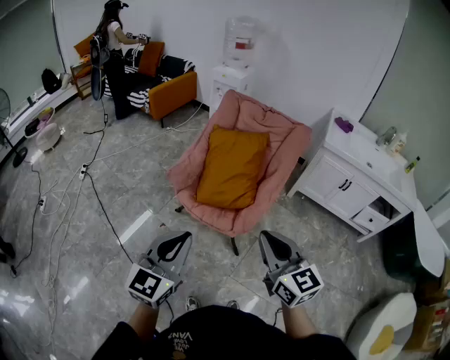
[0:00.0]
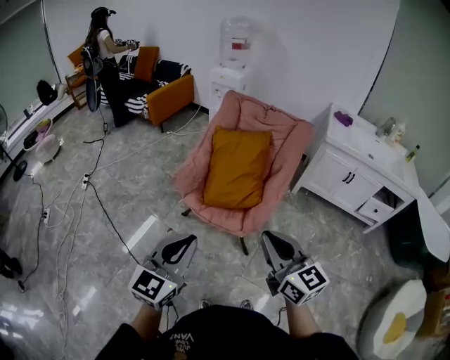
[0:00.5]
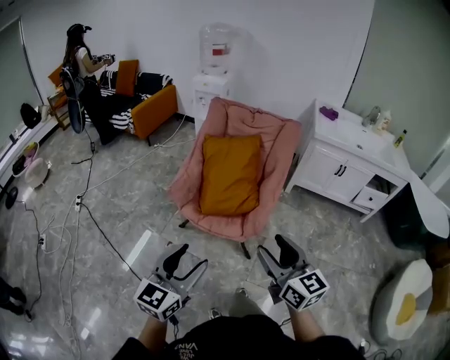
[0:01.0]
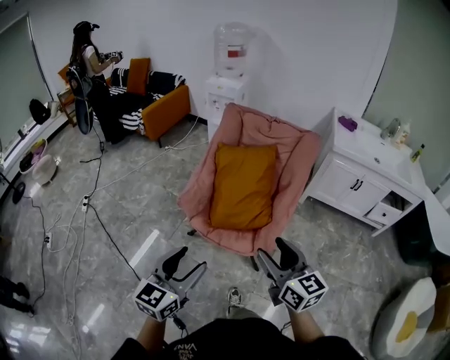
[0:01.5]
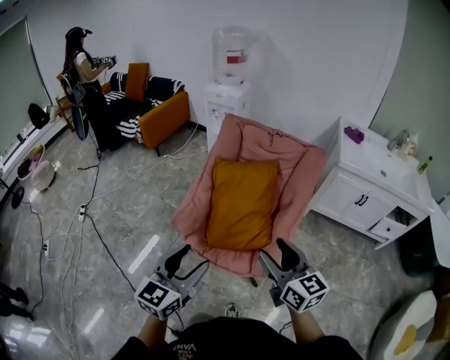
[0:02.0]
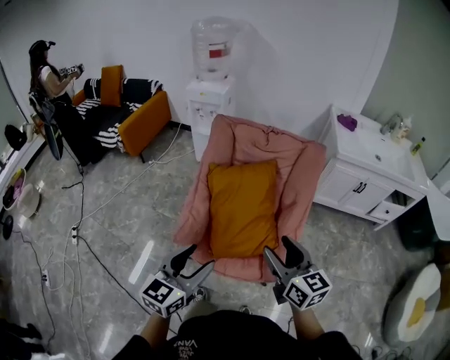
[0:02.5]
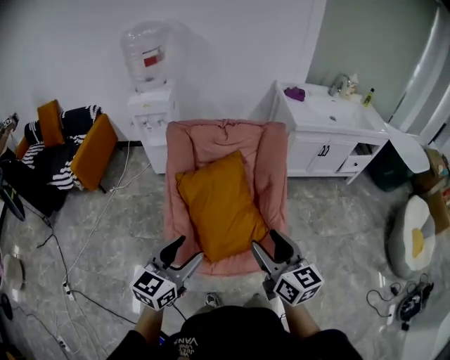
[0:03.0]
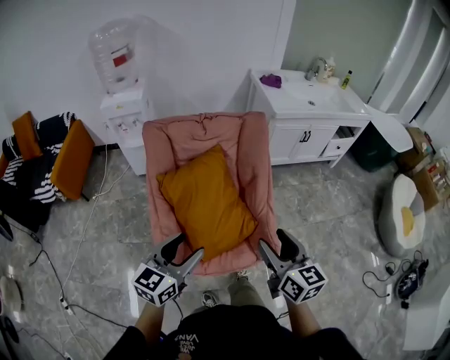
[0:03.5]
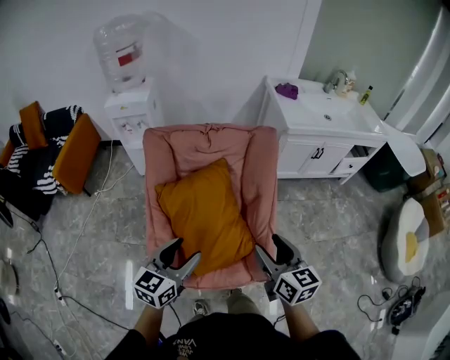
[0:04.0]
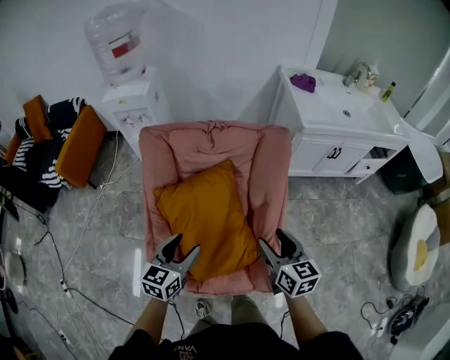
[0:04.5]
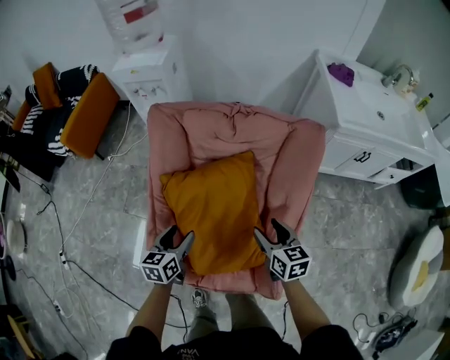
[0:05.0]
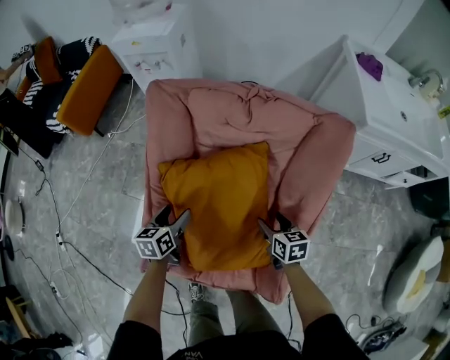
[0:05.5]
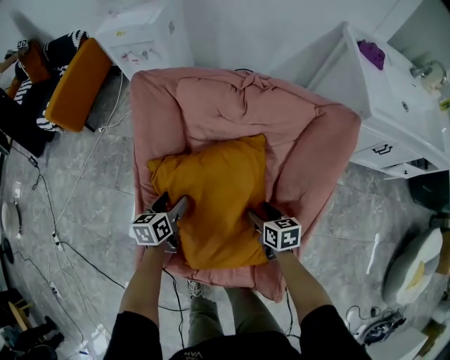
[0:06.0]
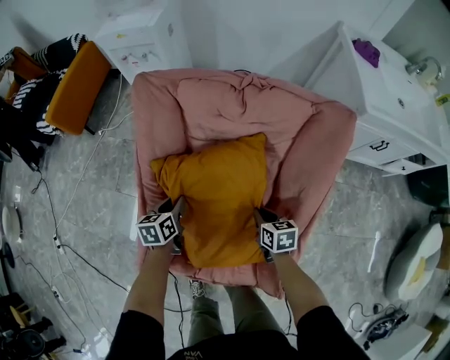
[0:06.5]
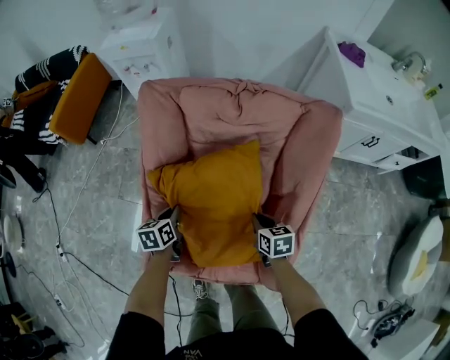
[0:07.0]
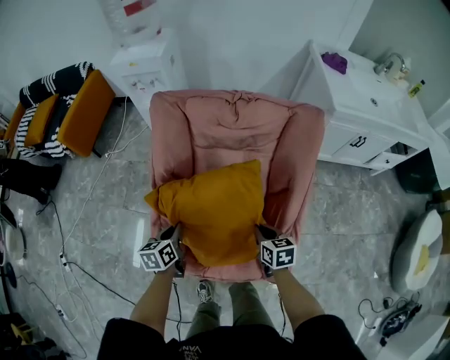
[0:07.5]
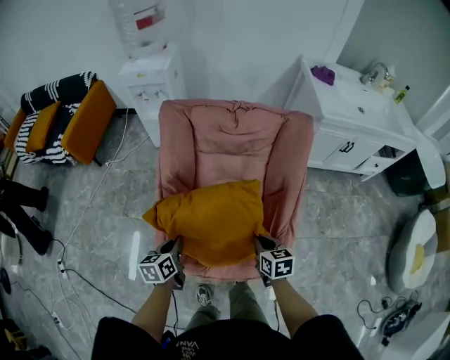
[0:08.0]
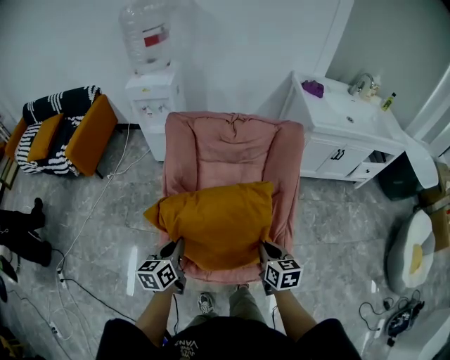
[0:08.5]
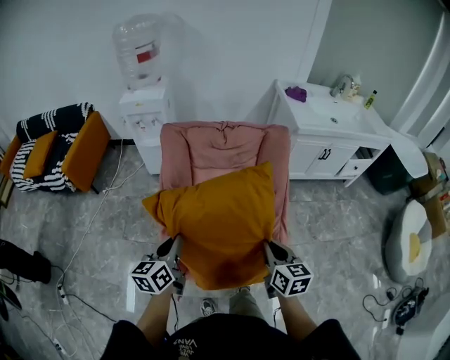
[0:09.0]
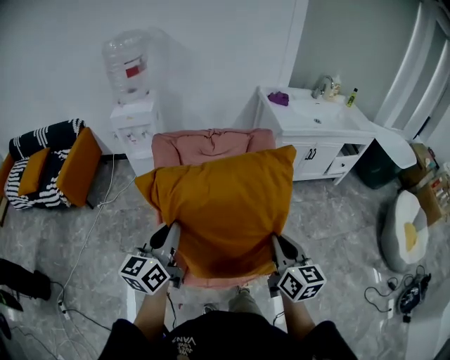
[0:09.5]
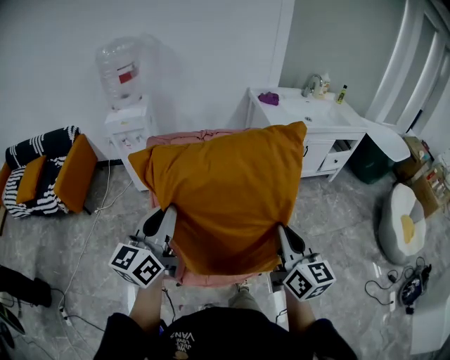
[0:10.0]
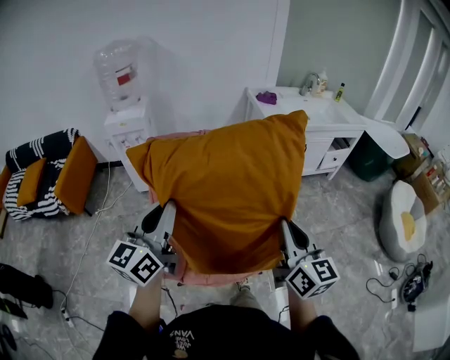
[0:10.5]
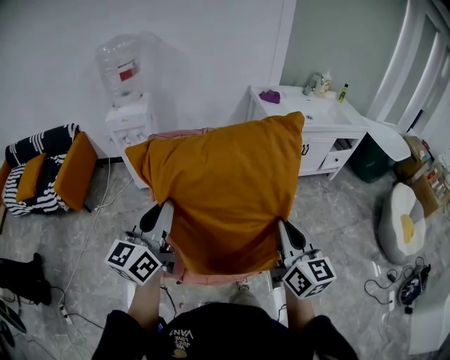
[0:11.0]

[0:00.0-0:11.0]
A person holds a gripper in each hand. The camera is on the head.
0:00.0 to 0:02.0: Both grippers move forward, about 20 cm. The left gripper opens its fingers. The right gripper opens up.
0:02.0 to 0:03.5: The left gripper changes place by about 20 cm, and rotates some 40 degrees. Meanwhile the right gripper rotates some 40 degrees.
0:03.5 to 0:05.5: The two grippers go roughly 35 cm downward. The right gripper angles its fingers downward, by roughly 30 degrees. The left gripper rotates roughly 50 degrees.
0:05.5 to 0:07.5: The two grippers go approximately 10 cm backward. The right gripper closes; the left gripper closes up.
0:07.5 to 0:09.0: The grippers both shift upward and backward by roughly 25 cm. The right gripper turns by approximately 30 degrees; the left gripper swivels approximately 30 degrees.
0:09.0 to 0:11.0: The two grippers go approximately 20 cm upward. The left gripper swivels about 30 degrees. The right gripper turns by roughly 30 degrees.

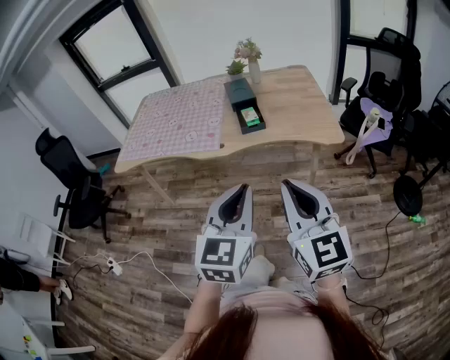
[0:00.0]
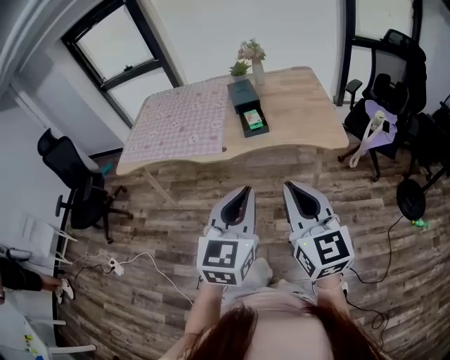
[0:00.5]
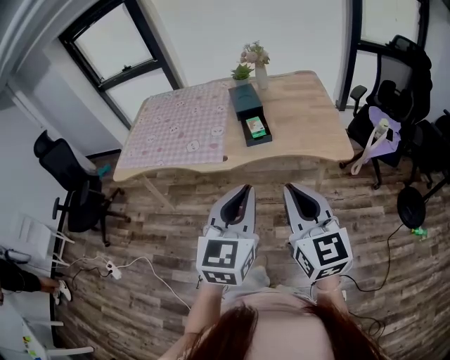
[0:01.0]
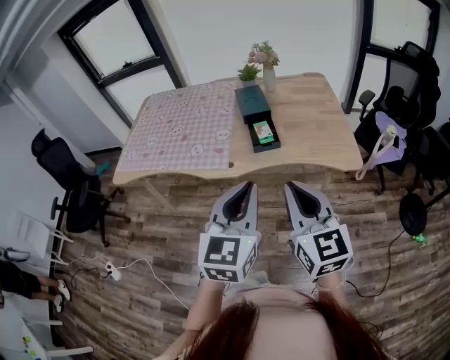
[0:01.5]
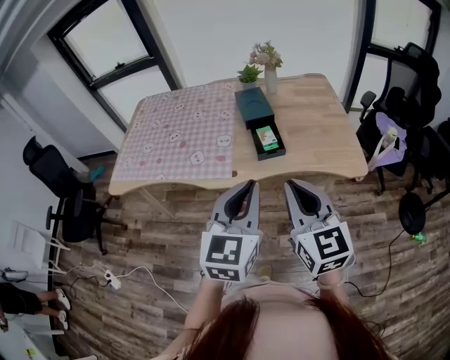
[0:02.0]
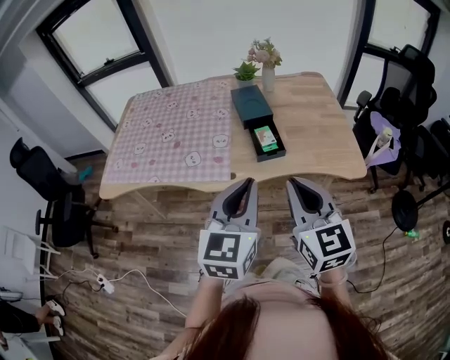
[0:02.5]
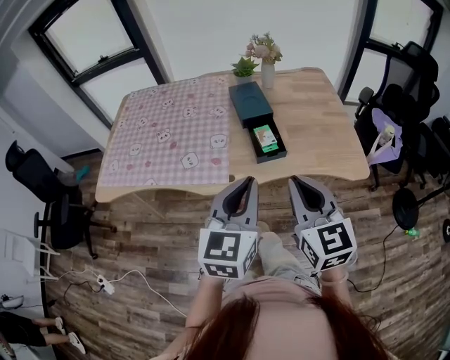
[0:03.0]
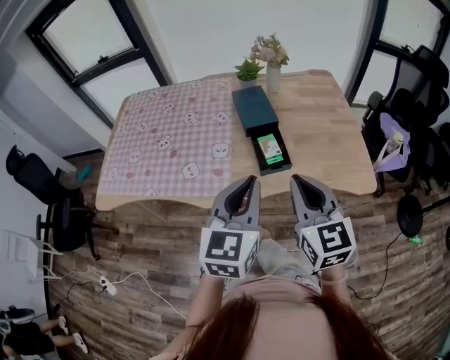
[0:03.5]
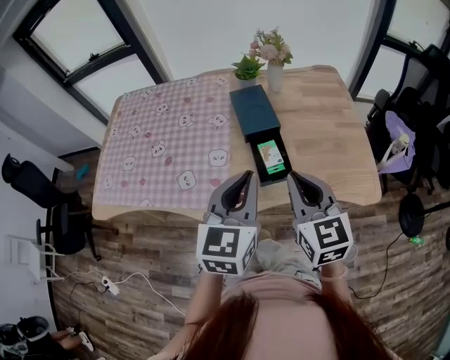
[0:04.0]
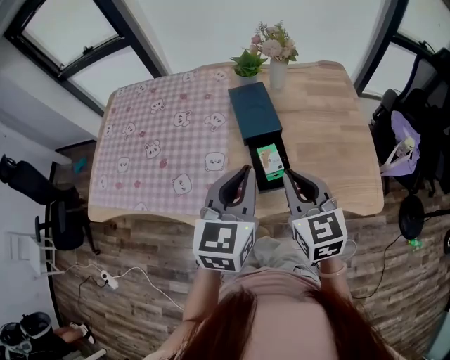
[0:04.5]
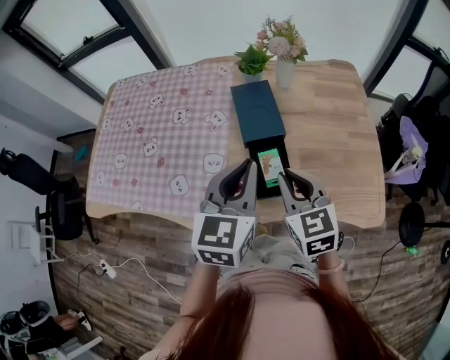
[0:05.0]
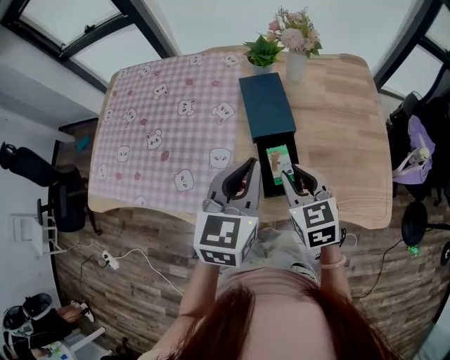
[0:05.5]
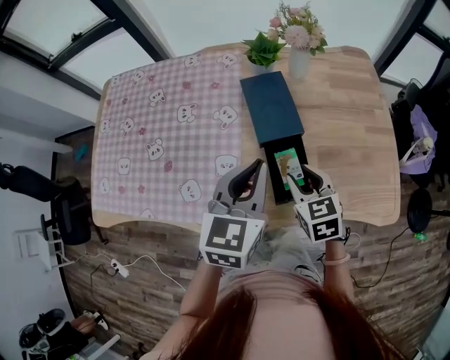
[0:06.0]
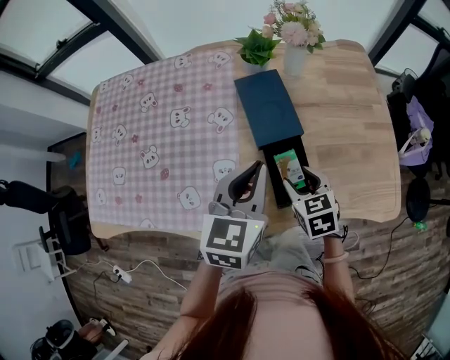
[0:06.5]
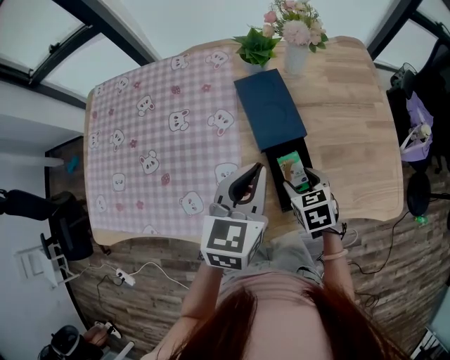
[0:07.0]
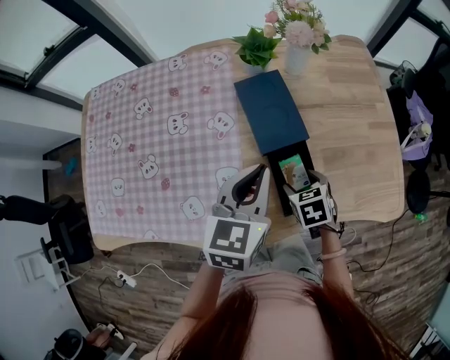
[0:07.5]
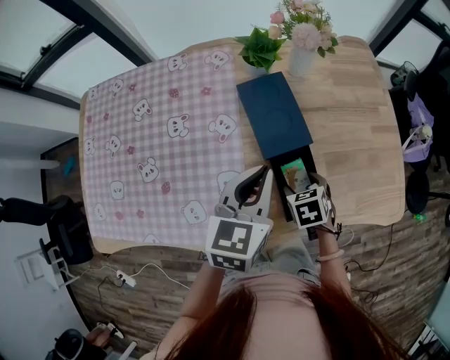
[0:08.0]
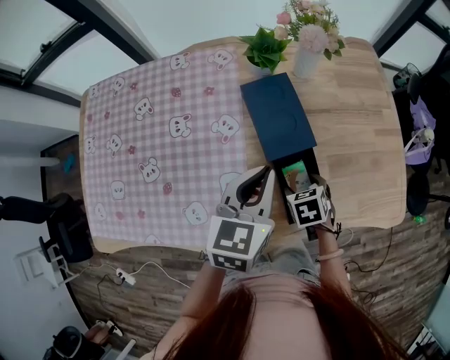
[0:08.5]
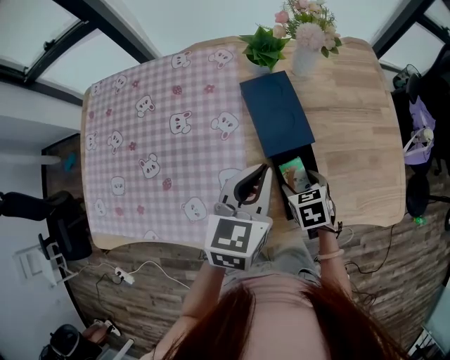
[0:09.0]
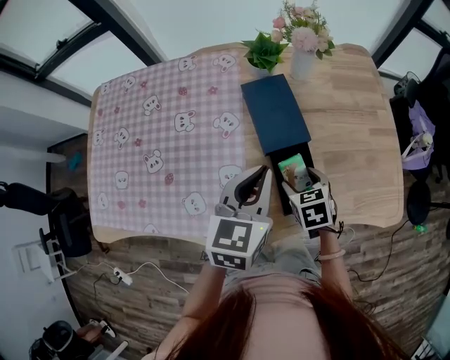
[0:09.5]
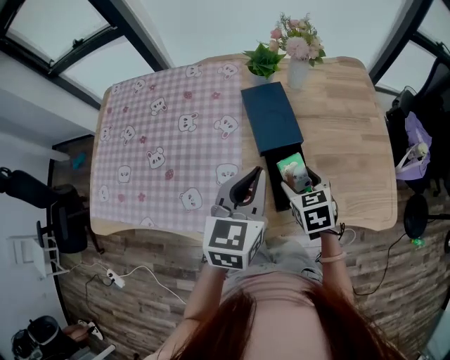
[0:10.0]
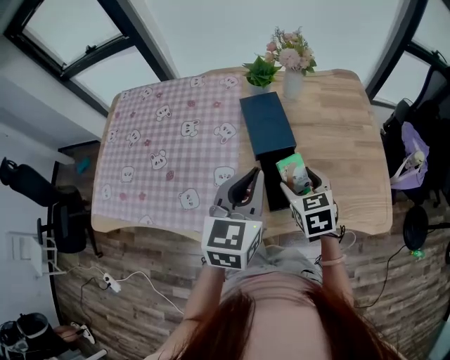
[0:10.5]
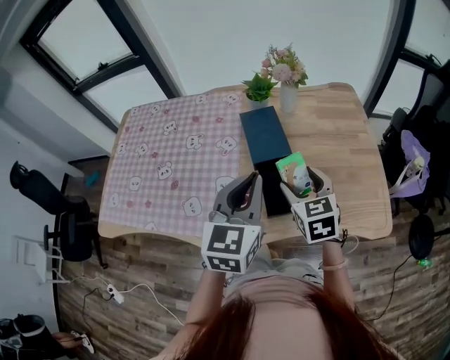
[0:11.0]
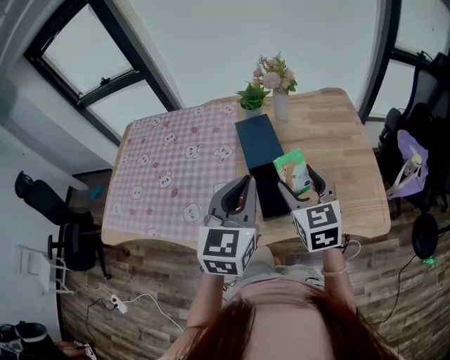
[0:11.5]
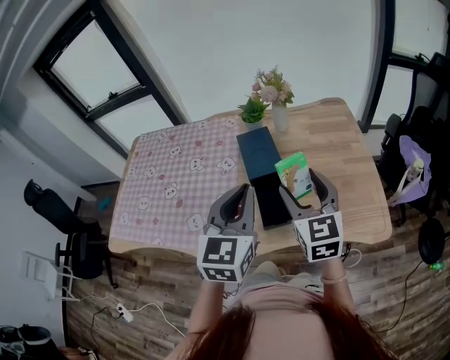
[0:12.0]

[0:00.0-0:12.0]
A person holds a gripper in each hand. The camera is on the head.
0:00.0 to 0:02.0: Both grippers travel together forward, approximately 20 cm.
0:02.0 to 0:04.0: The two grippers go some 25 cm forward.
0:04.0 to 0:06.0: The right gripper is displaced downward and forward by about 25 cm, changes its angle by roughly 30 degrees, and opens its fingers. The left gripper goes roughly 15 cm forward.
0:06.0 to 0:08.0: The left gripper is displaced forward and downward by approximately 10 cm, while the right gripper travels downward by roughly 15 cm, turns by some 30 degrees, and opens its fingers.
0:08.0 to 0:10.0: The left gripper goes roughly 5 cm backward. Meanwhile the right gripper heads upward, covering approximately 10 cm, and changes its angle by roughly 20 degrees.
0:10.0 to 0:12.0: The left gripper heads upward, backward and to the right, covering some 15 cm. Meanwhile the right gripper moves upward, some 20 cm, and tips its fingers upward by roughly 40 degrees.

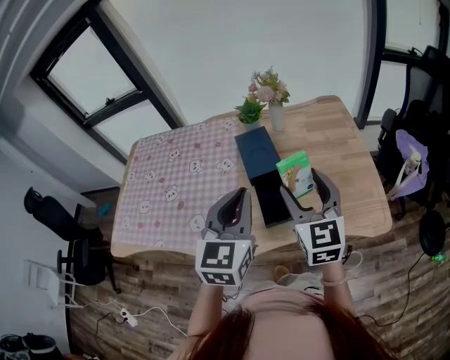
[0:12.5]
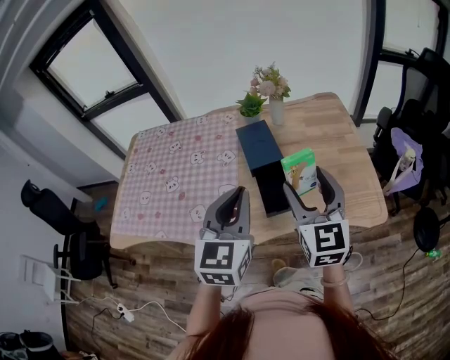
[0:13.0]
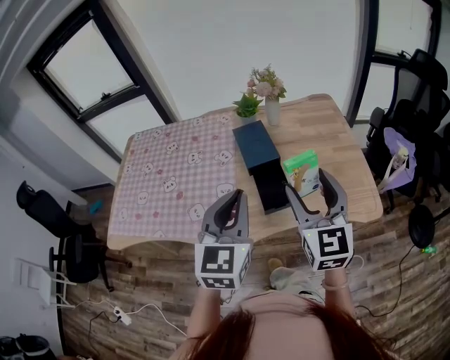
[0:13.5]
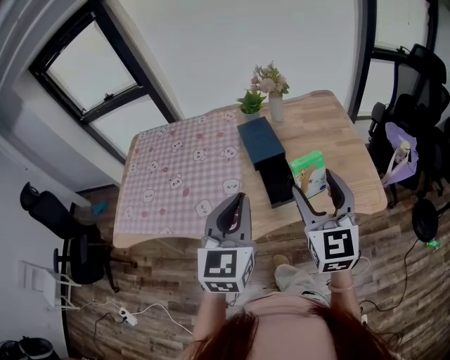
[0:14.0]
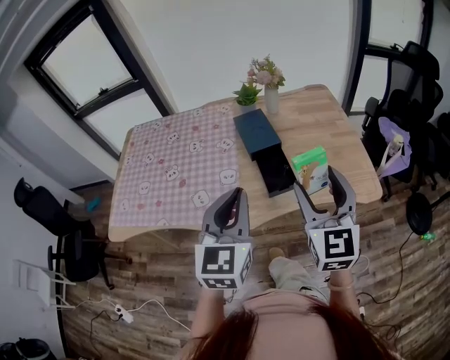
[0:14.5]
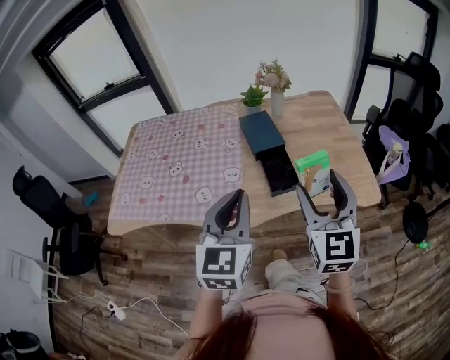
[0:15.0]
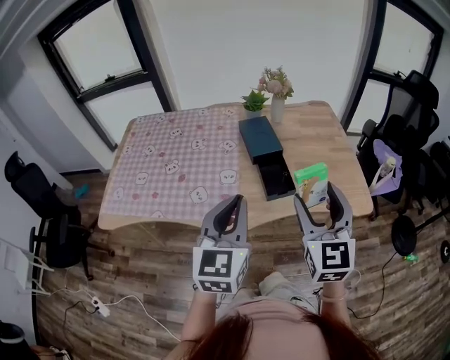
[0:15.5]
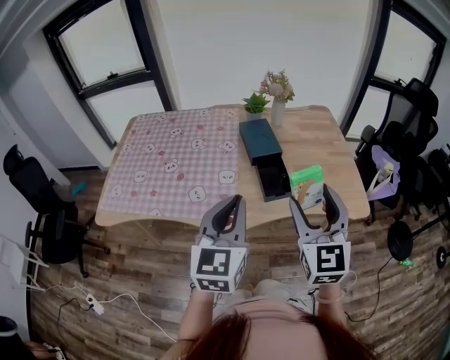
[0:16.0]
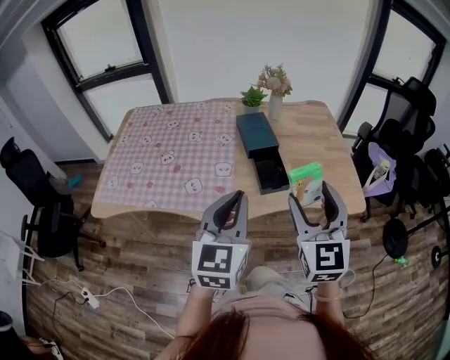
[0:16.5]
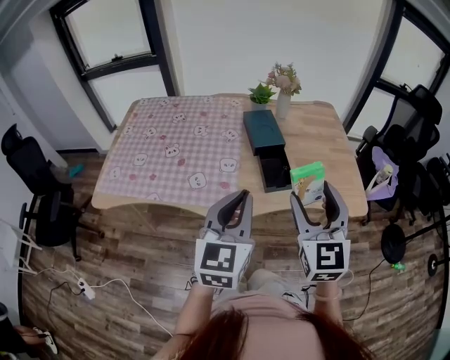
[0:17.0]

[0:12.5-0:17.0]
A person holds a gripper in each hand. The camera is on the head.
0:12.5 to 0:14.5: The left gripper is displaced backward and to the left by approximately 15 cm, while the right gripper moves backward, approximately 15 cm.
0:14.5 to 0:17.0: Both grippers travel together backward, approximately 5 cm.
